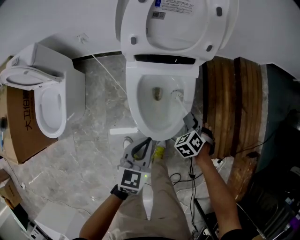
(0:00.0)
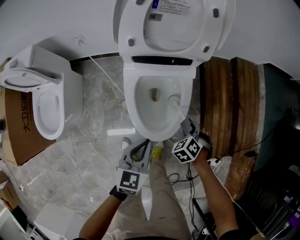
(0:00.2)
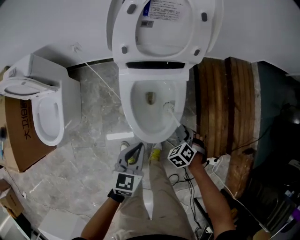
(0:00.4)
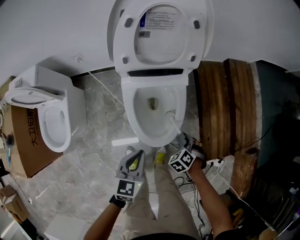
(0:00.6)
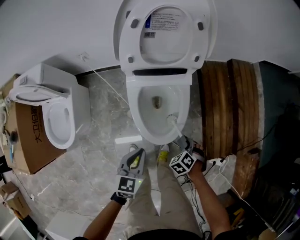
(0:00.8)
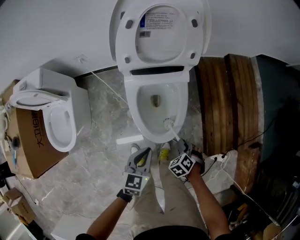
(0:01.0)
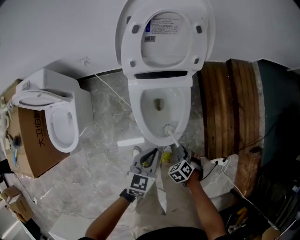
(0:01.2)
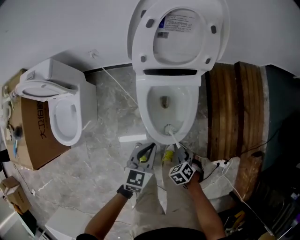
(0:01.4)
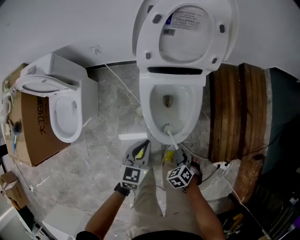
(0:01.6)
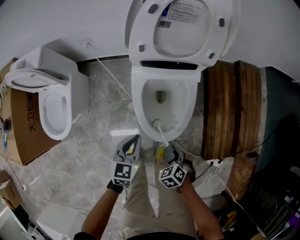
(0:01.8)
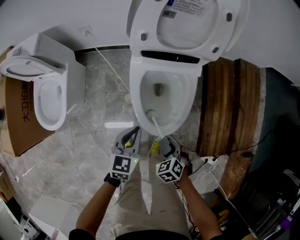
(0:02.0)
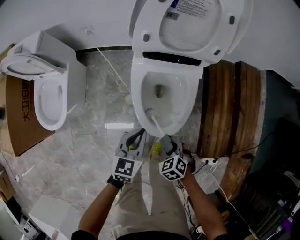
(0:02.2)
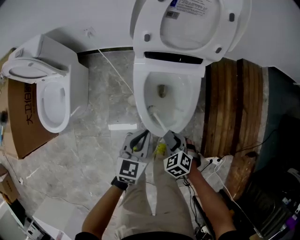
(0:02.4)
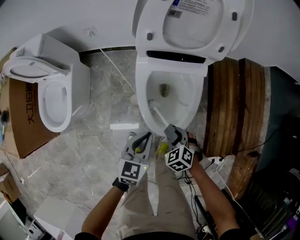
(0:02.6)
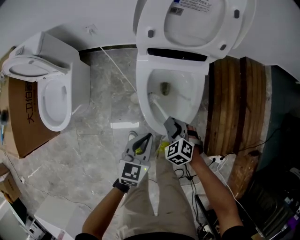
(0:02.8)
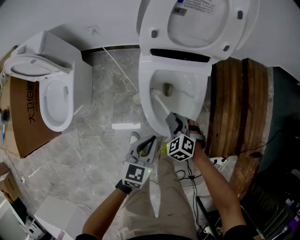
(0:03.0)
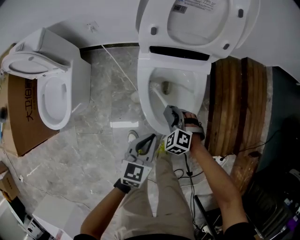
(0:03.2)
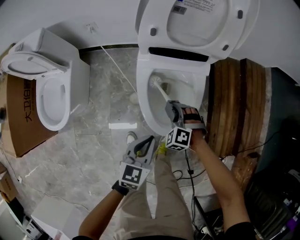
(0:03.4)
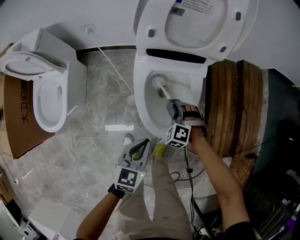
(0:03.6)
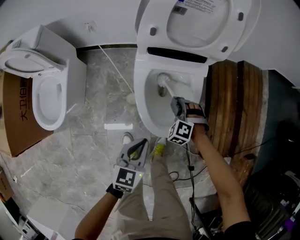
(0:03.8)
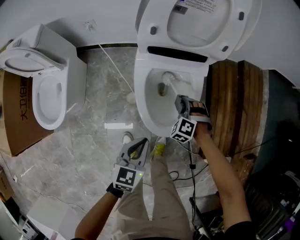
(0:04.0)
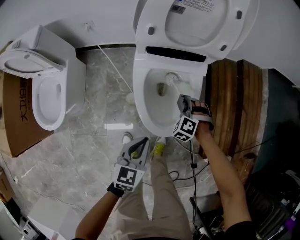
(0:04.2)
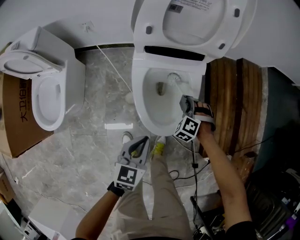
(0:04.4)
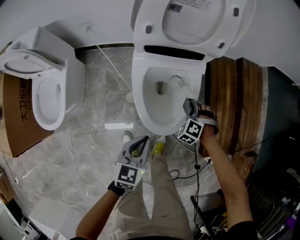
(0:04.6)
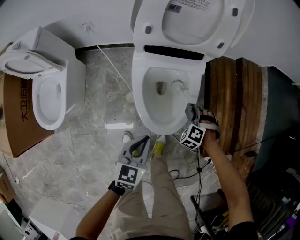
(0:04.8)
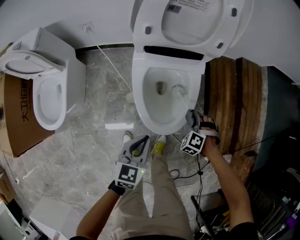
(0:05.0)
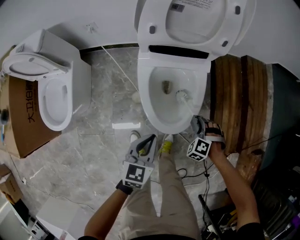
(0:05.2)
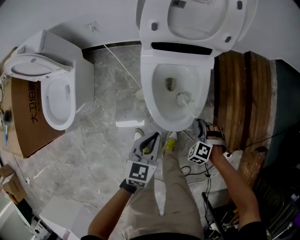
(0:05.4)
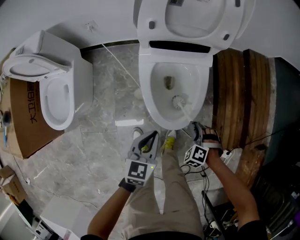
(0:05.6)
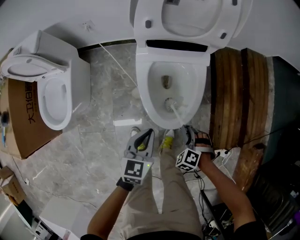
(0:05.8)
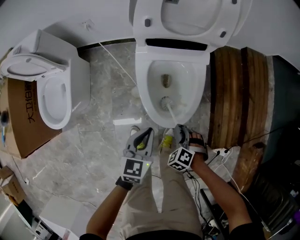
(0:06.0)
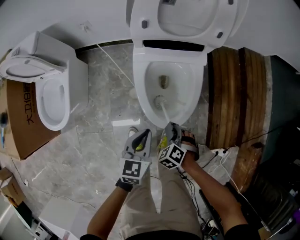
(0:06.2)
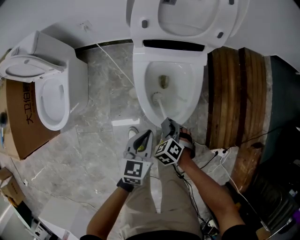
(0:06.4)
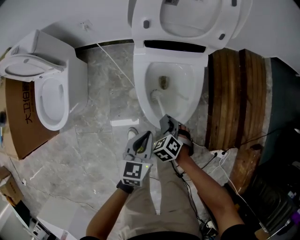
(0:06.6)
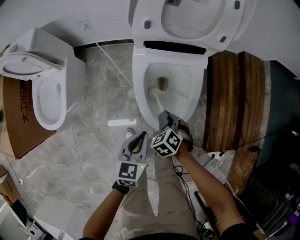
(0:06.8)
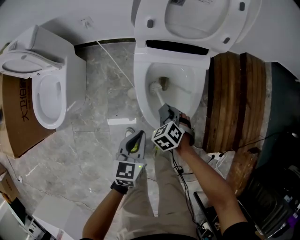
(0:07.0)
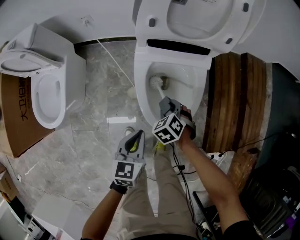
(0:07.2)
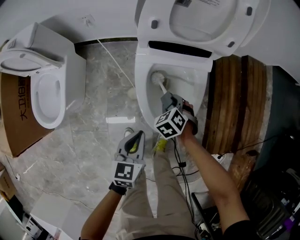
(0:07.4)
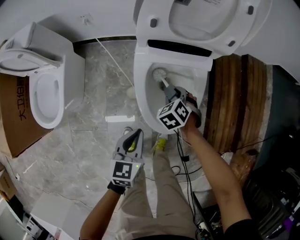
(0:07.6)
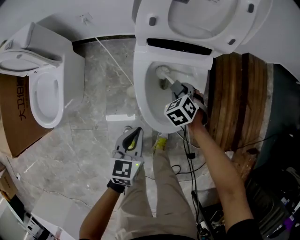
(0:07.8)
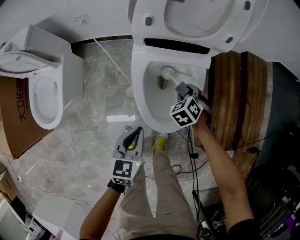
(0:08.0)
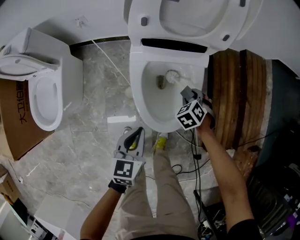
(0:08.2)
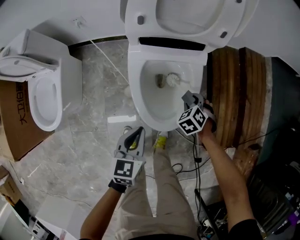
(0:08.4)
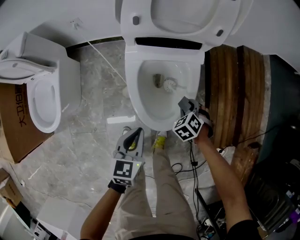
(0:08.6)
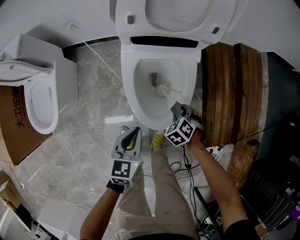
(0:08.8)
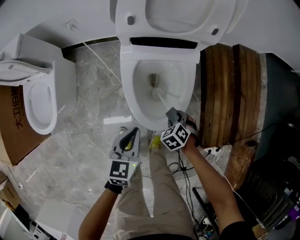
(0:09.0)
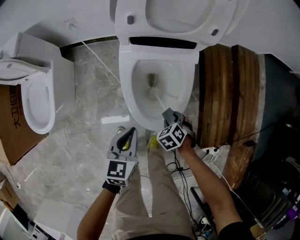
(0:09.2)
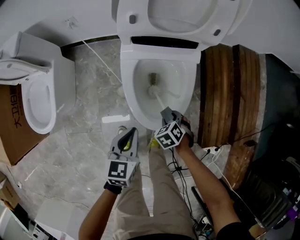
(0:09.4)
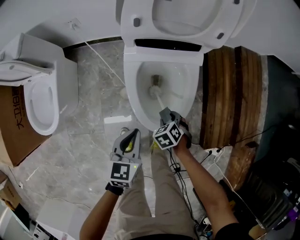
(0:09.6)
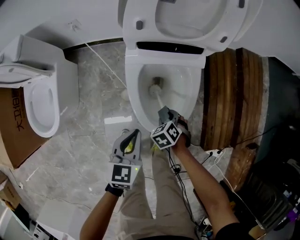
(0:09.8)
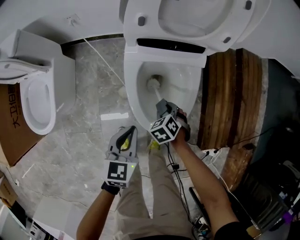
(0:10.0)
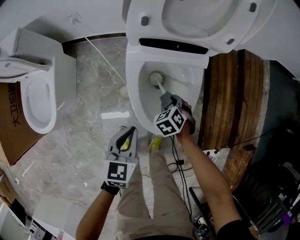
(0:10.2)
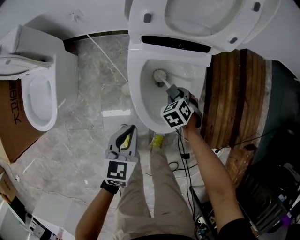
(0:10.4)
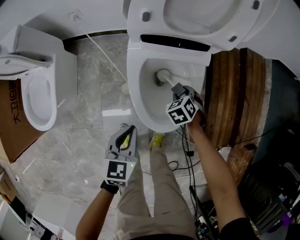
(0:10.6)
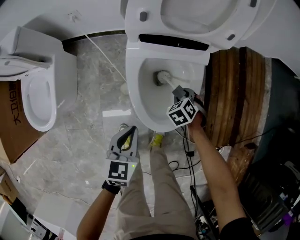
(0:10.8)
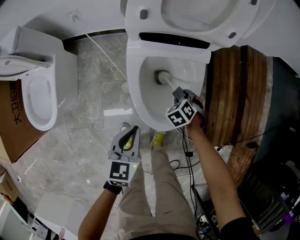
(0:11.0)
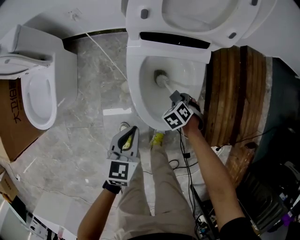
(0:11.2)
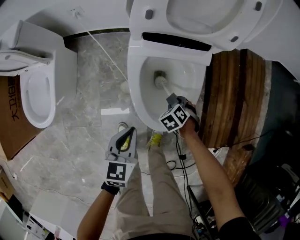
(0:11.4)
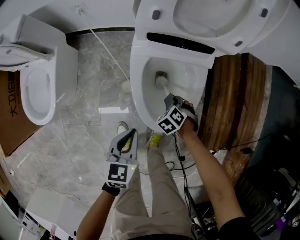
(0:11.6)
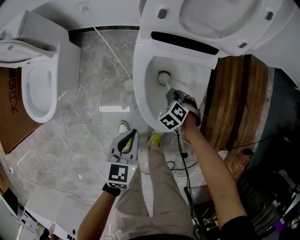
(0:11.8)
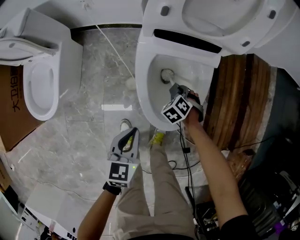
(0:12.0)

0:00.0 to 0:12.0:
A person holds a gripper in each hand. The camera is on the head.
0:00.0 to 0:01.6: The left gripper ends up some 5 cm from where it was. The right gripper shifts by roughly 20 cm.
0:01.6 to 0:03.0: The right gripper moves some 15 cm, and turns by some 30 degrees. Meanwhile the left gripper ends up about 5 cm from where it was.
0:03.0 to 0:04.4: The right gripper travels forward and to the right by roughly 10 cm, and swivels approximately 30 degrees.
0:04.4 to 0:06.0: The right gripper heads backward, covering approximately 20 cm.
0:06.0 to 0:07.6: The right gripper shifts some 25 cm forward and to the left.
0:07.6 to 0:09.0: The right gripper shifts by approximately 15 cm.
0:09.0 to 0:10.4: The right gripper shifts by approximately 15 cm.
0:10.4 to 0:12.0: The right gripper moves downward, some 5 cm.

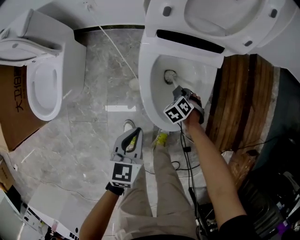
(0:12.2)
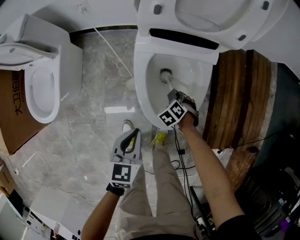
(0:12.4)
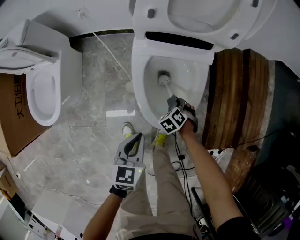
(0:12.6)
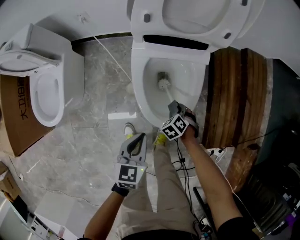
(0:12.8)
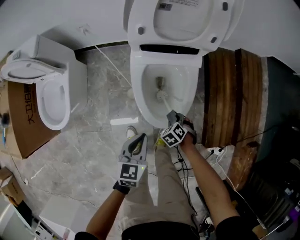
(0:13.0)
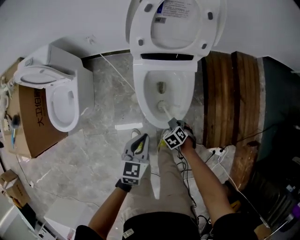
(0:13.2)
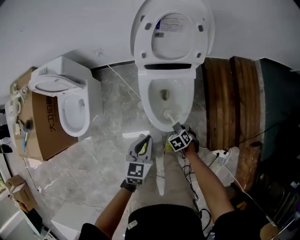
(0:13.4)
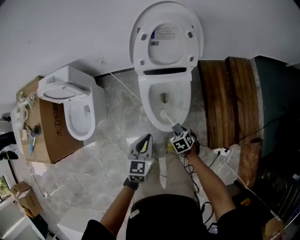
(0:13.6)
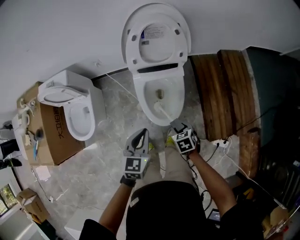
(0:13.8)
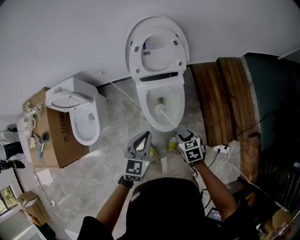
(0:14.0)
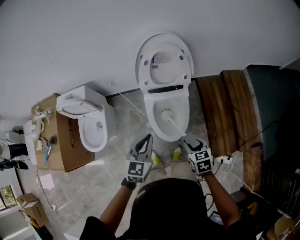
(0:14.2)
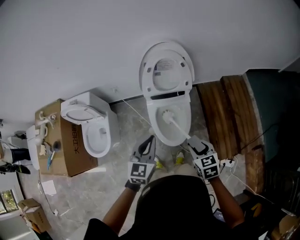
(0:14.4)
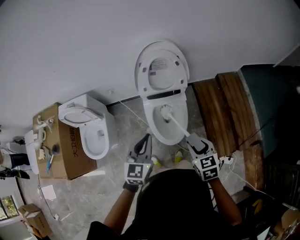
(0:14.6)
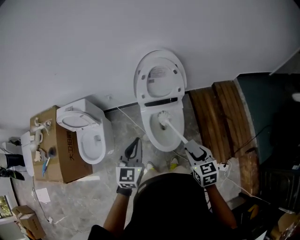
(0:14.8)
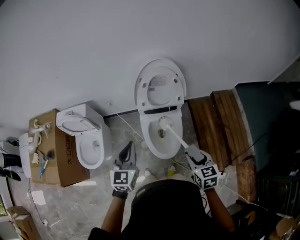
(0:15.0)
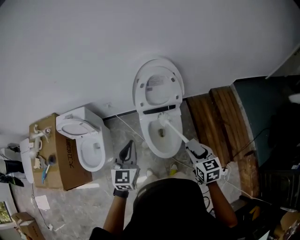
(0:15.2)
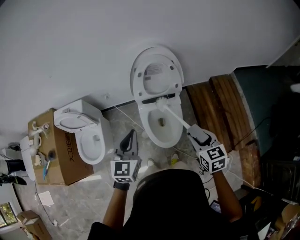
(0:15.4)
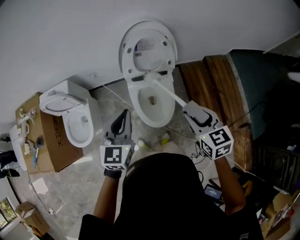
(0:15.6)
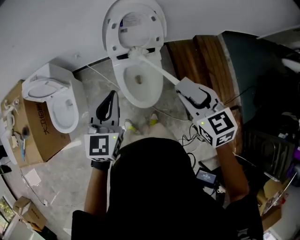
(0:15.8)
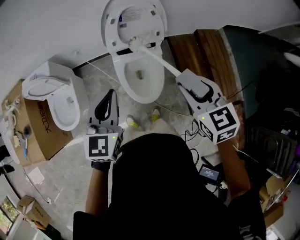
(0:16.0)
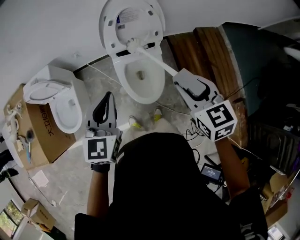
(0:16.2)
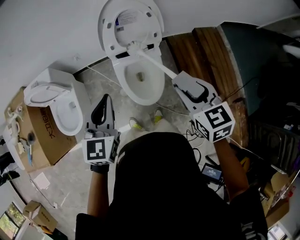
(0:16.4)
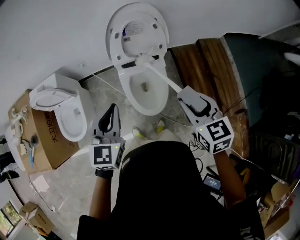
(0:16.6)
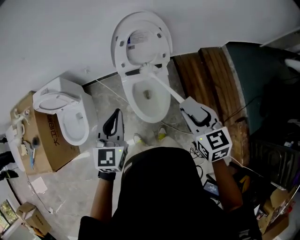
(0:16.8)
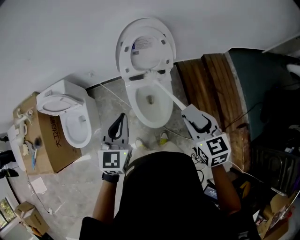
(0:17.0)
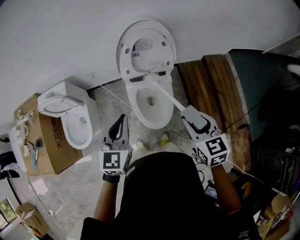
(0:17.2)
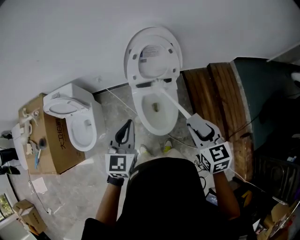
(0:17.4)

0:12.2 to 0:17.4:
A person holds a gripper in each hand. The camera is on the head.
0:12.2 to 0:14.0: The grippers both shift upward by roughly 40 cm. The left gripper rotates some 20 degrees; the right gripper rolls clockwise, seen from behind, by about 40 degrees.
0:14.0 to 0:15.6: The right gripper is displaced upward by some 25 cm, and swivels about 20 degrees. Meanwhile the left gripper shifts approximately 15 cm upward, forward and to the left.
0:15.6 to 0:17.4: The grippers make only small movements.

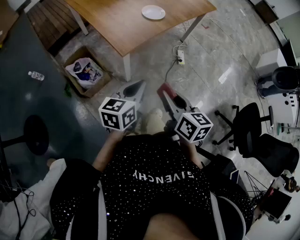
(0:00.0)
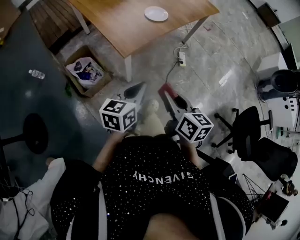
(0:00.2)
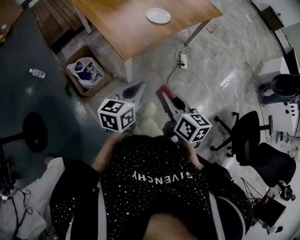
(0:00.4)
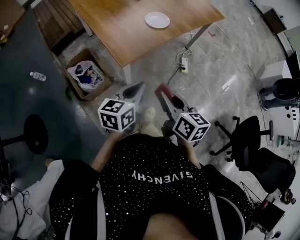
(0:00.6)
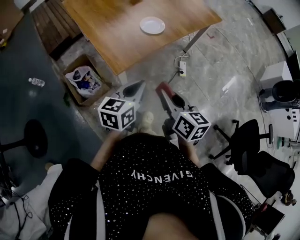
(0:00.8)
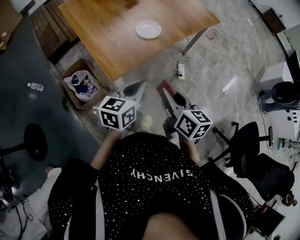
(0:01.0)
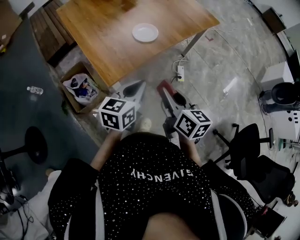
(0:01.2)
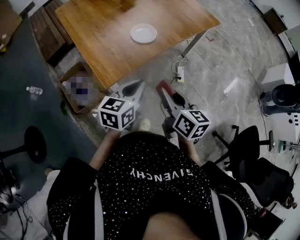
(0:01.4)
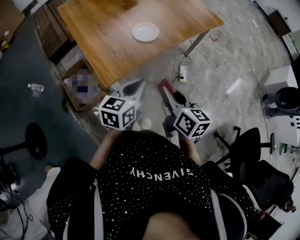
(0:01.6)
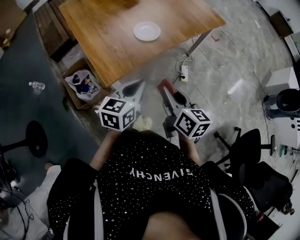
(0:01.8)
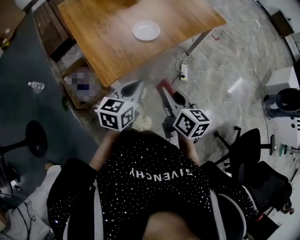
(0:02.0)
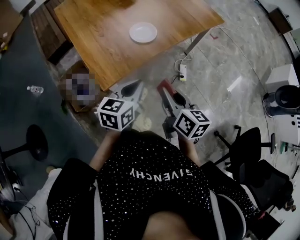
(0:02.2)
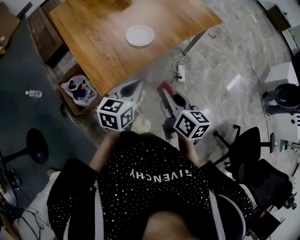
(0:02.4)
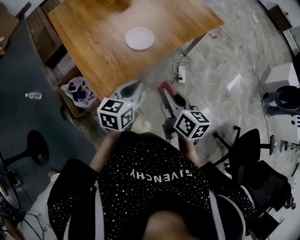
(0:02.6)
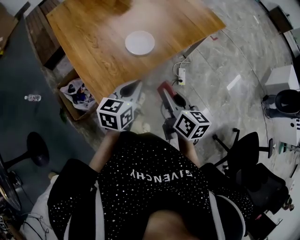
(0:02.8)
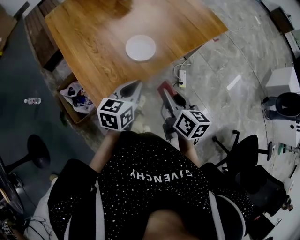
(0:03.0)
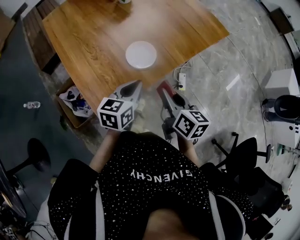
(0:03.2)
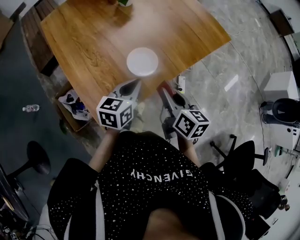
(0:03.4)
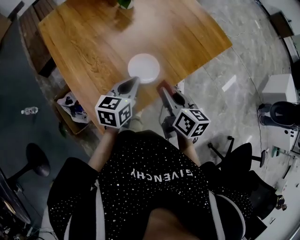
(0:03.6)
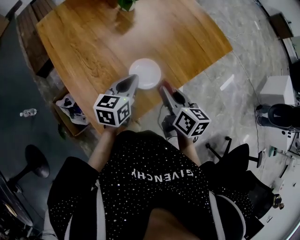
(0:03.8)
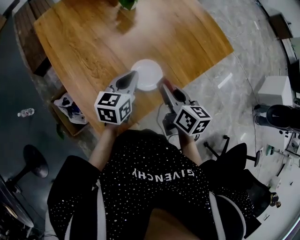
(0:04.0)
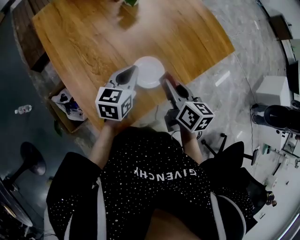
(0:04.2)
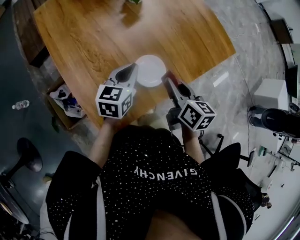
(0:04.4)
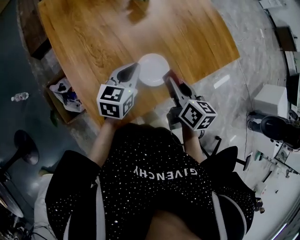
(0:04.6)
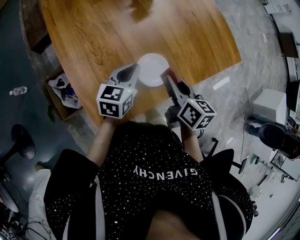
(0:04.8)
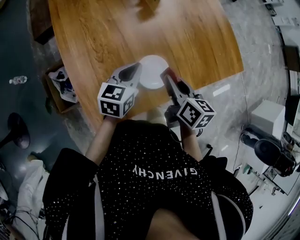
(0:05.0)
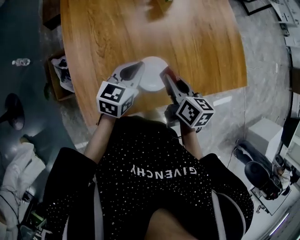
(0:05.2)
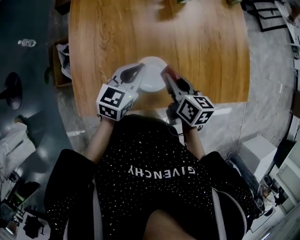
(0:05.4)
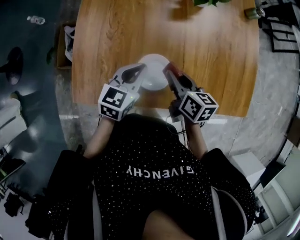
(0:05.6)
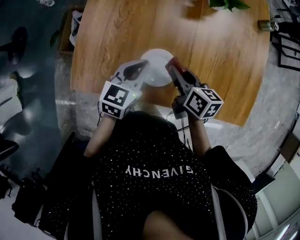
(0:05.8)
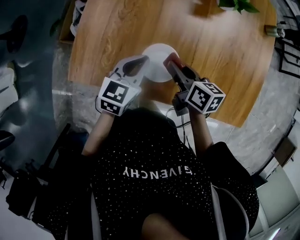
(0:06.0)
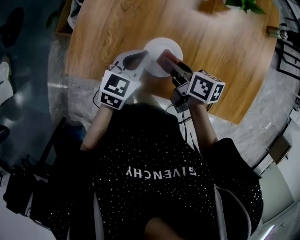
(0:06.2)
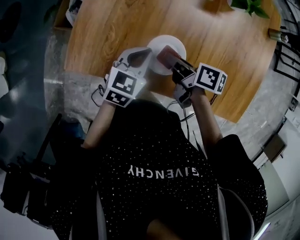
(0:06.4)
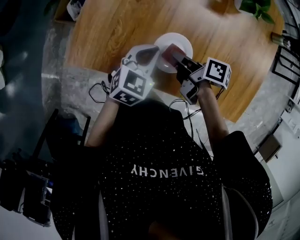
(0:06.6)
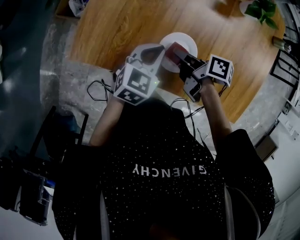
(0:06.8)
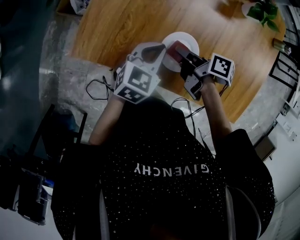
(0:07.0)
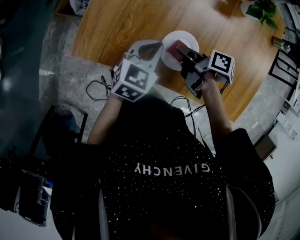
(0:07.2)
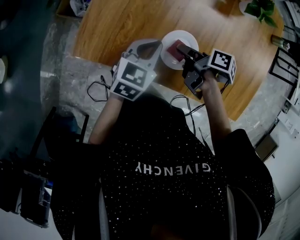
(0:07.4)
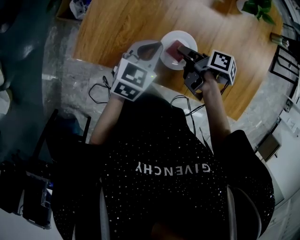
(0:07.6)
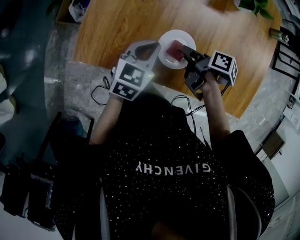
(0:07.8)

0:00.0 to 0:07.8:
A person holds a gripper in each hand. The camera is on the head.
0:00.0 to 0:01.6: Both grippers travel together forward and to the right, some 20 cm.
0:01.6 to 0:03.2: The grippers both shift forward by roughly 20 cm.
0:03.2 to 0:04.6: The left gripper is displaced forward and to the left by approximately 20 cm; the right gripper shifts about 15 cm forward.
0:04.6 to 0:06.2: Both grippers travel together downward, some 10 cm. The left gripper changes its angle by some 30 degrees. Meanwhile the right gripper swivels some 60 degrees.
0:06.2 to 0:07.8: The right gripper rotates roughly 30 degrees.
